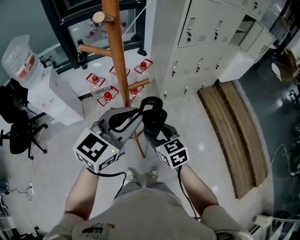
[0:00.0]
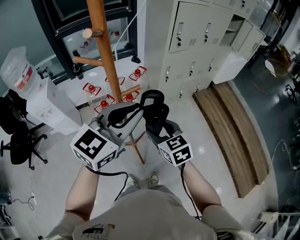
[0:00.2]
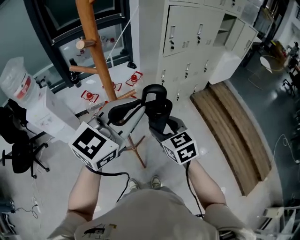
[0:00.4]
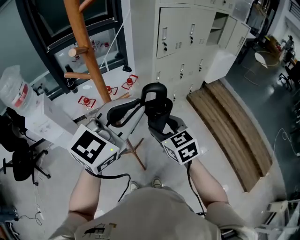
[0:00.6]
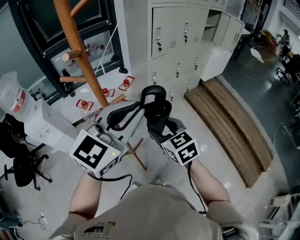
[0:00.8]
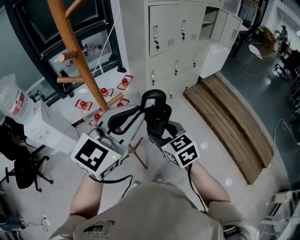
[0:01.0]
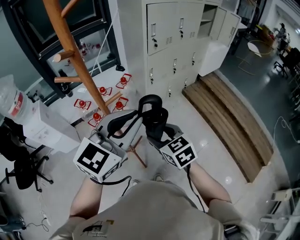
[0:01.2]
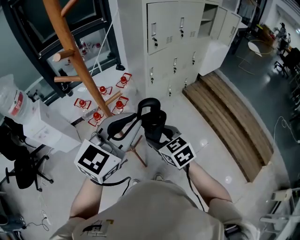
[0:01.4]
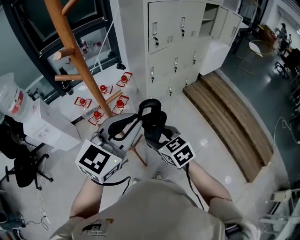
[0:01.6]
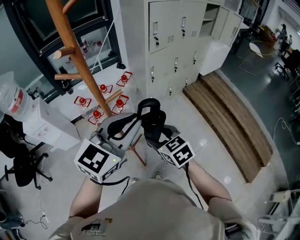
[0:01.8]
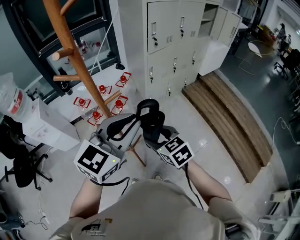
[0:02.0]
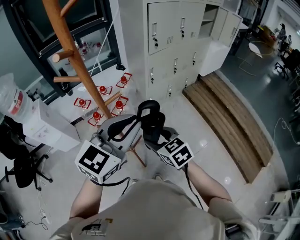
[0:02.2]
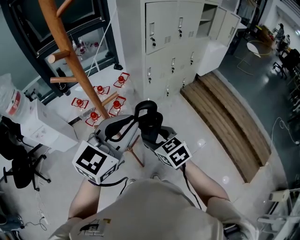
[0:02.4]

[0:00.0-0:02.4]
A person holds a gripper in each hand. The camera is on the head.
0:00.0 to 0:01.2: The two grippers go some 10 cm to the right and upward.
0:01.2 to 0:02.4: The grippers make only small movements.

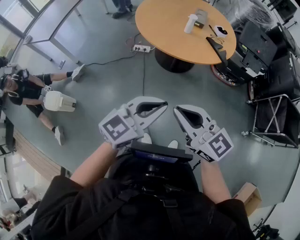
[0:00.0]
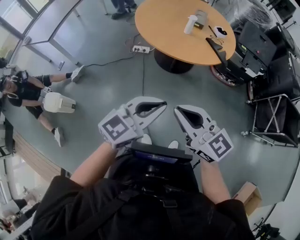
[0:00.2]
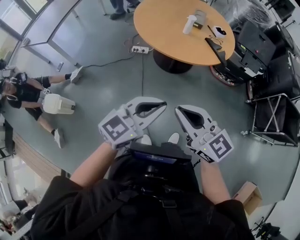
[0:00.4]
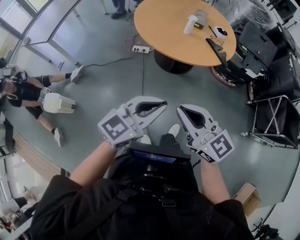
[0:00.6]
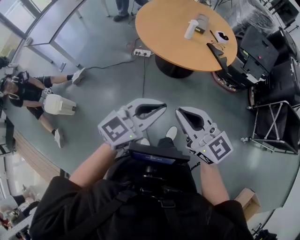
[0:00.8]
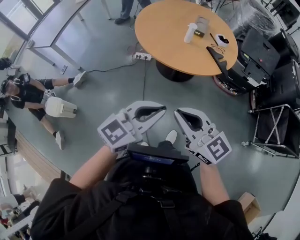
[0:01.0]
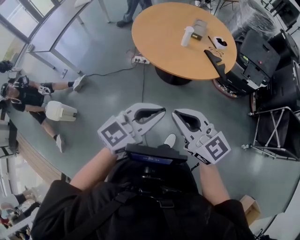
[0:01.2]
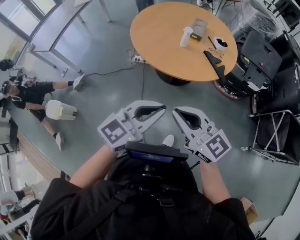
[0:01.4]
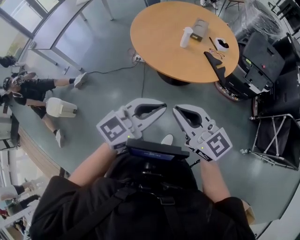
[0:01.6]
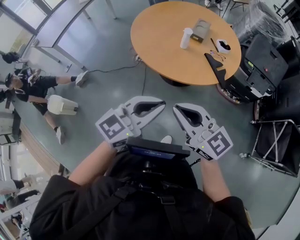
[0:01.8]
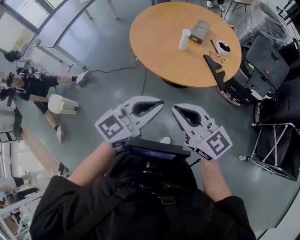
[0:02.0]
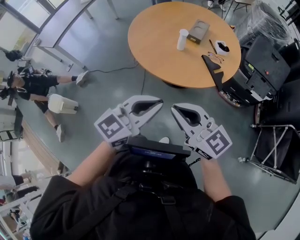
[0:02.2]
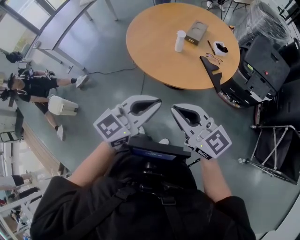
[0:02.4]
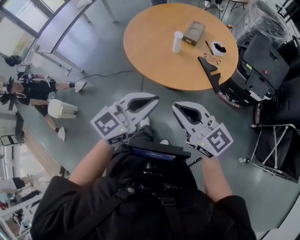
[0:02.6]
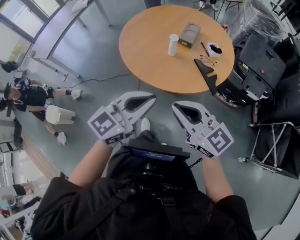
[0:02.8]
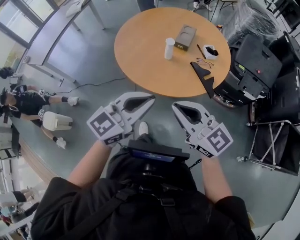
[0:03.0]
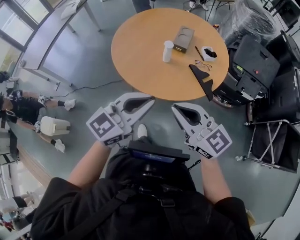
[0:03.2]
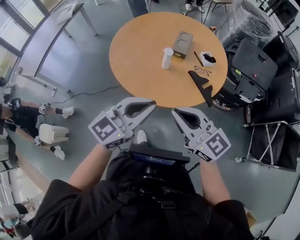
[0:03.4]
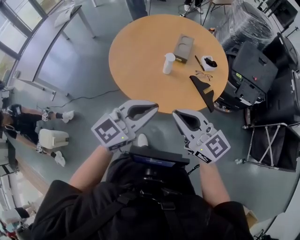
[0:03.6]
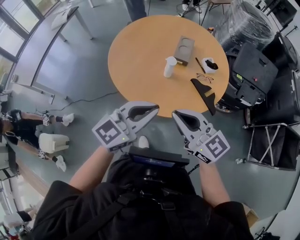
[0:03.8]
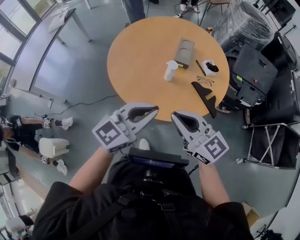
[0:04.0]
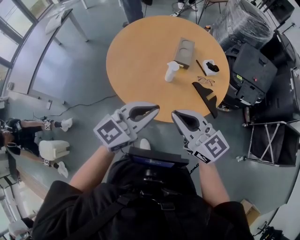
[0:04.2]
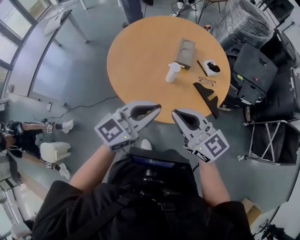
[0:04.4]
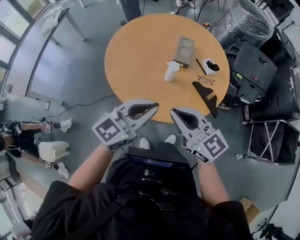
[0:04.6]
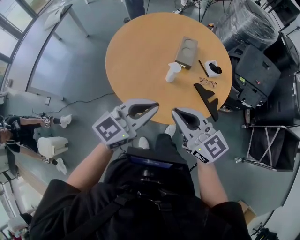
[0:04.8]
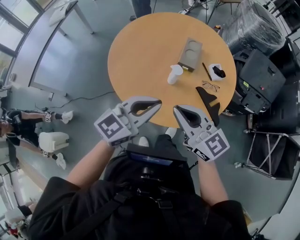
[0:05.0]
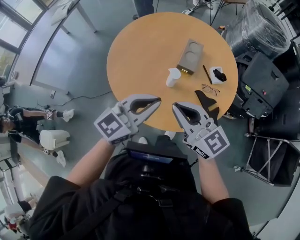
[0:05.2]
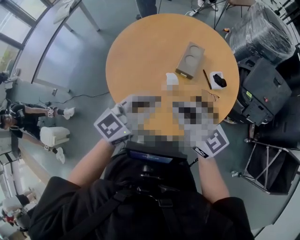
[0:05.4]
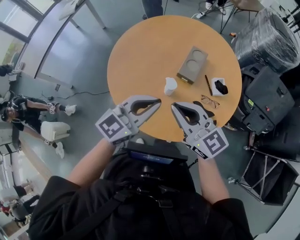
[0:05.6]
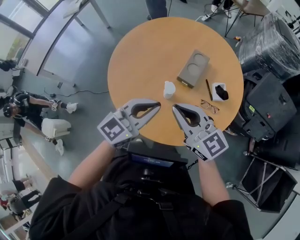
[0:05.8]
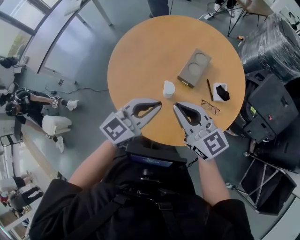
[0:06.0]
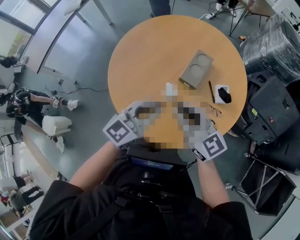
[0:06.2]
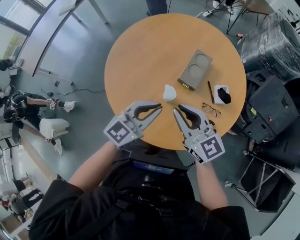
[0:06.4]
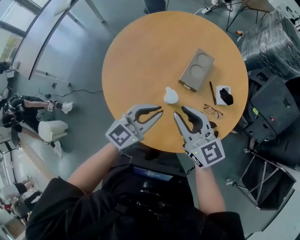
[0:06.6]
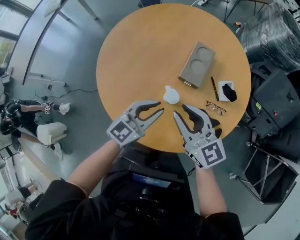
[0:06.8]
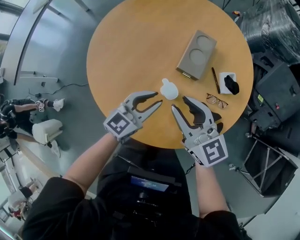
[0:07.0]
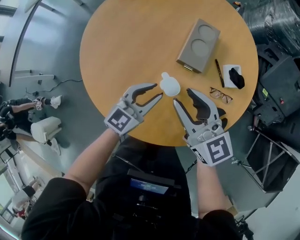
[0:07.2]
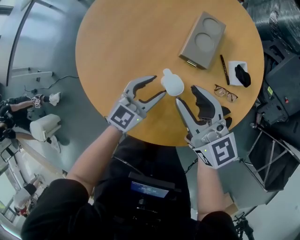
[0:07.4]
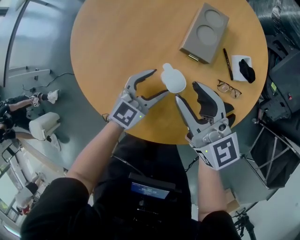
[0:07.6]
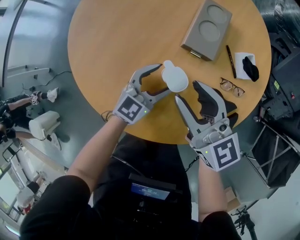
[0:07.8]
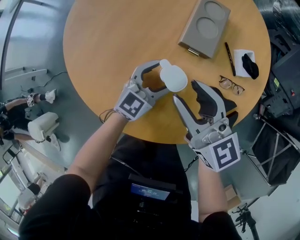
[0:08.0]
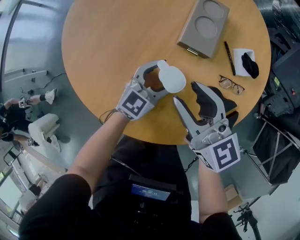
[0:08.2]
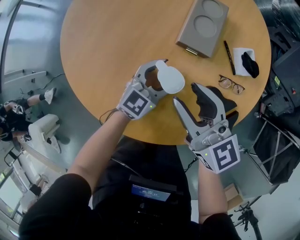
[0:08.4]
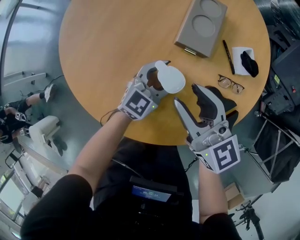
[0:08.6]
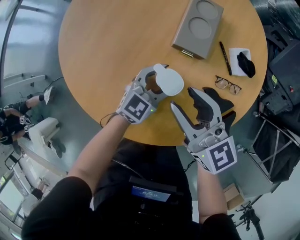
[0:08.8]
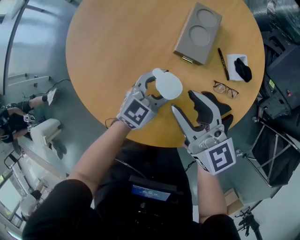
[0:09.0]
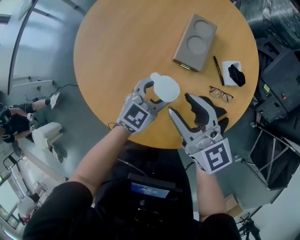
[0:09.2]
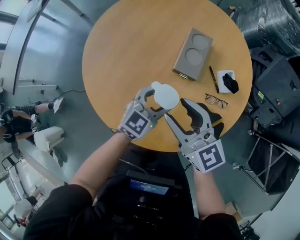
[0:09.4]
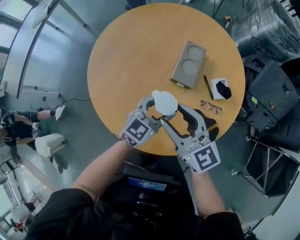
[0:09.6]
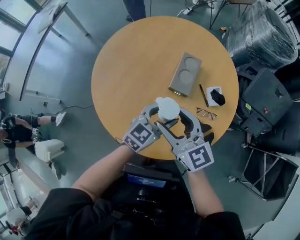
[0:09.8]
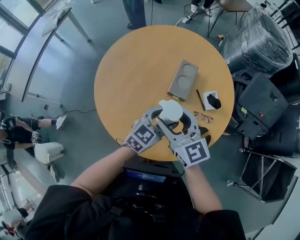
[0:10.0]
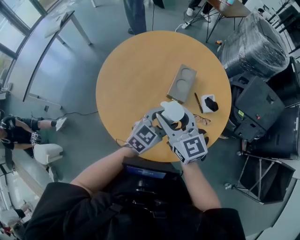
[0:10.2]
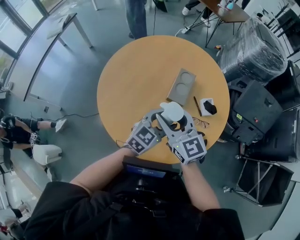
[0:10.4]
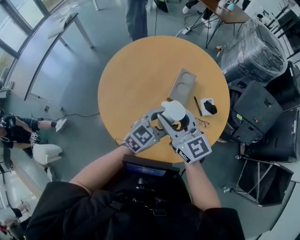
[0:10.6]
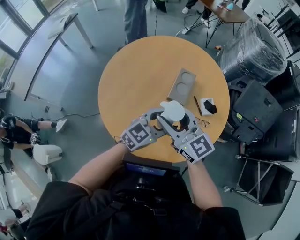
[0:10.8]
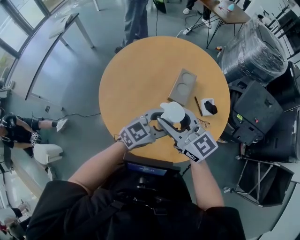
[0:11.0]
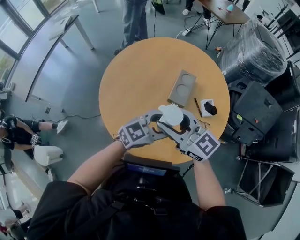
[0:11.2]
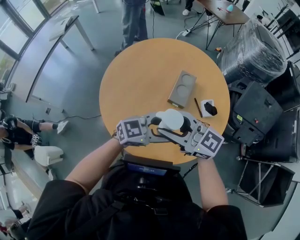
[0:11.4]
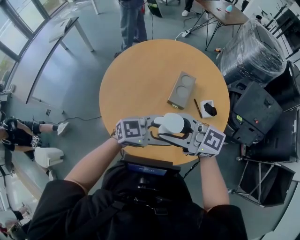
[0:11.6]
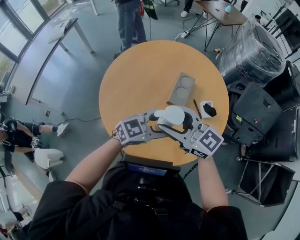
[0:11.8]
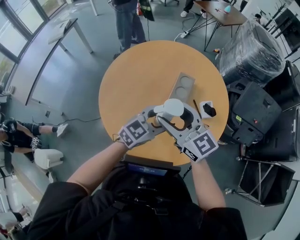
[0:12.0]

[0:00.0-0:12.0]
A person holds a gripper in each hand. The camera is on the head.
0:00.0 to 0:01.6: The two grippers go roughly 25 cm forward and to the right.
0:01.6 to 0:03.0: The grippers both shift forward and to the right by roughly 20 cm.
0:03.0 to 0:04.4: The grippers both shift forward and to the left by some 30 cm.
0:04.4 to 0:06.0: Both grippers travel together forward and to the right, some 30 cm.
0:06.0 to 0:07.6: Both grippers travel together downward and forward, about 35 cm. The right gripper opens. Meanwhile the left gripper opens.
0:07.6 to 0:09.0: The left gripper travels to the right by roughly 5 cm.
0:09.0 to 0:10.4: The two grippers go approximately 30 cm upward.
0:10.4 to 0:12.0: The right gripper shifts approximately 5 cm upward.

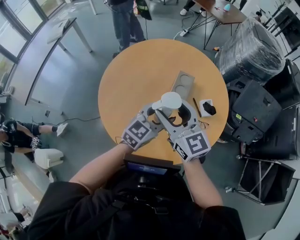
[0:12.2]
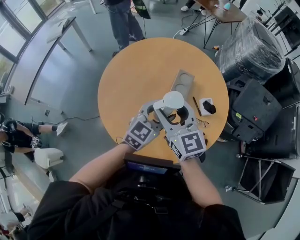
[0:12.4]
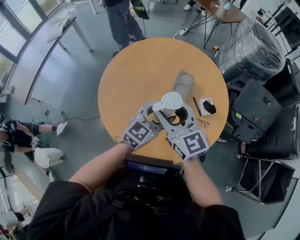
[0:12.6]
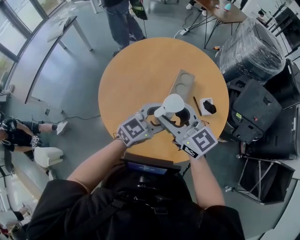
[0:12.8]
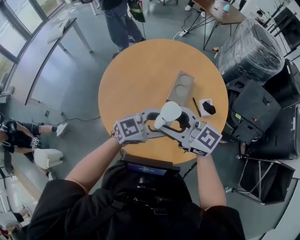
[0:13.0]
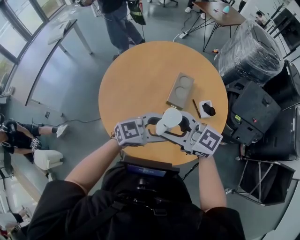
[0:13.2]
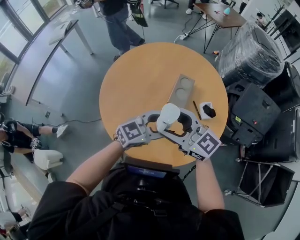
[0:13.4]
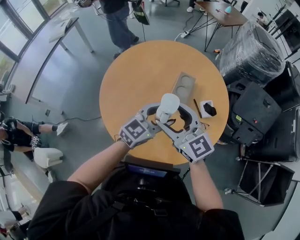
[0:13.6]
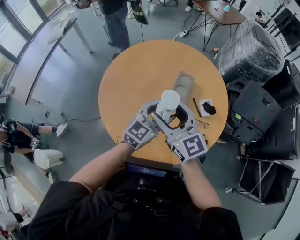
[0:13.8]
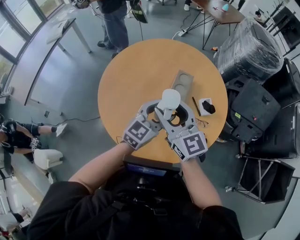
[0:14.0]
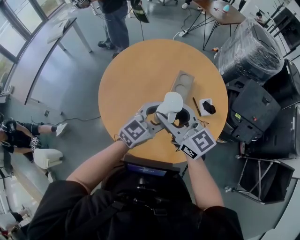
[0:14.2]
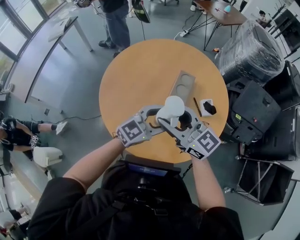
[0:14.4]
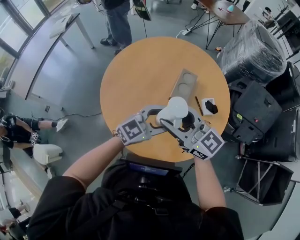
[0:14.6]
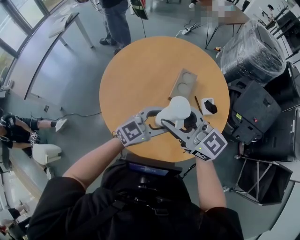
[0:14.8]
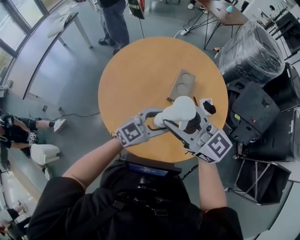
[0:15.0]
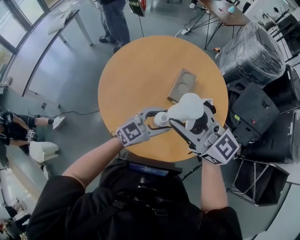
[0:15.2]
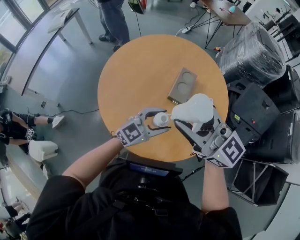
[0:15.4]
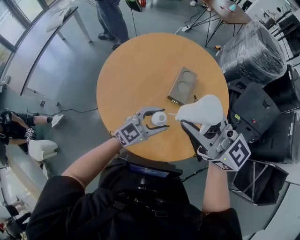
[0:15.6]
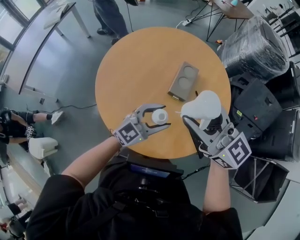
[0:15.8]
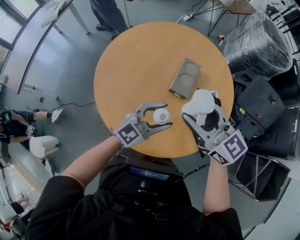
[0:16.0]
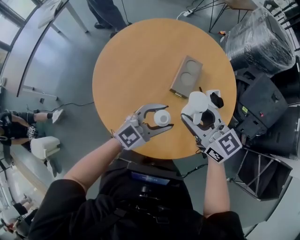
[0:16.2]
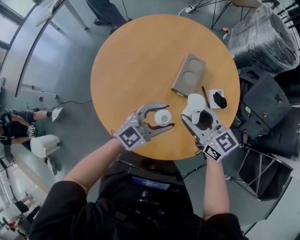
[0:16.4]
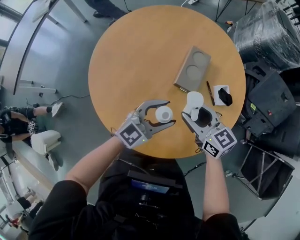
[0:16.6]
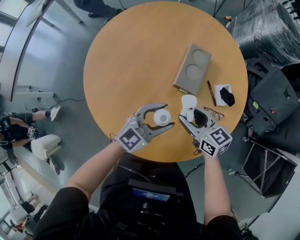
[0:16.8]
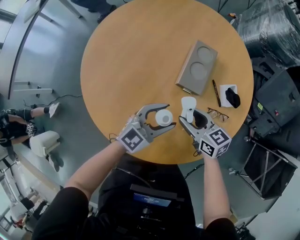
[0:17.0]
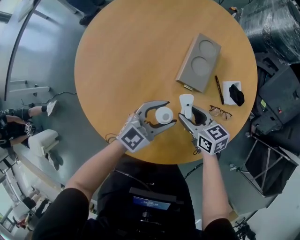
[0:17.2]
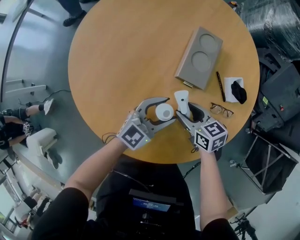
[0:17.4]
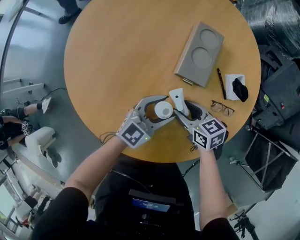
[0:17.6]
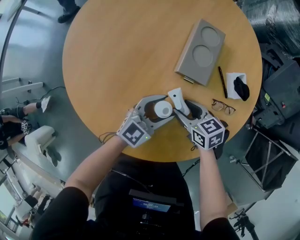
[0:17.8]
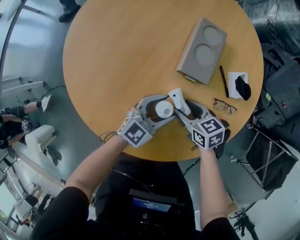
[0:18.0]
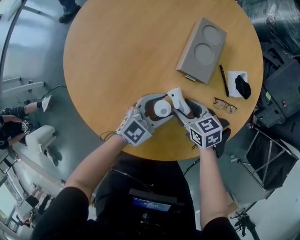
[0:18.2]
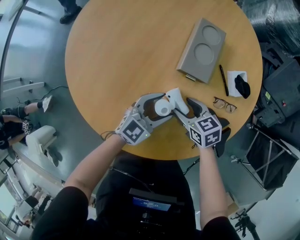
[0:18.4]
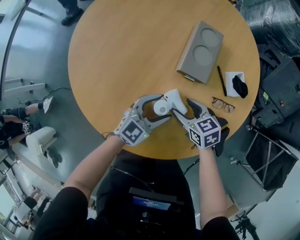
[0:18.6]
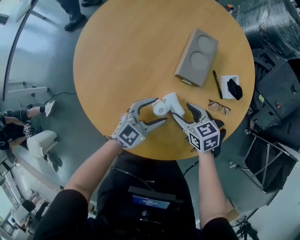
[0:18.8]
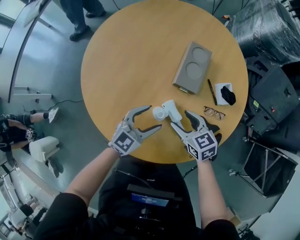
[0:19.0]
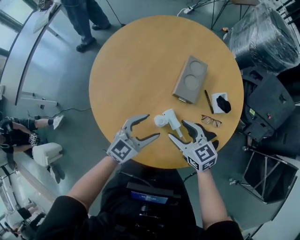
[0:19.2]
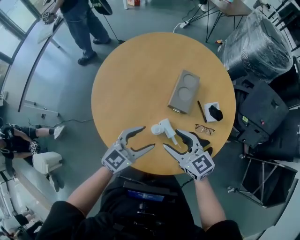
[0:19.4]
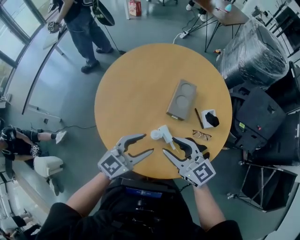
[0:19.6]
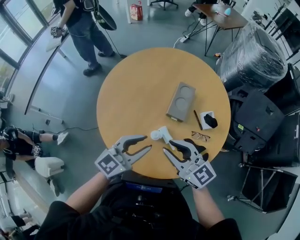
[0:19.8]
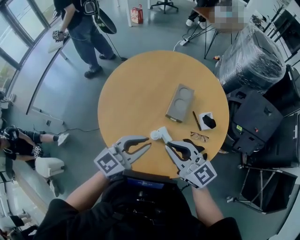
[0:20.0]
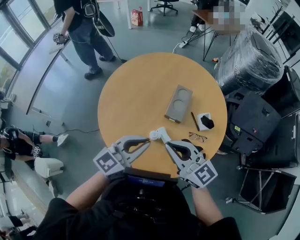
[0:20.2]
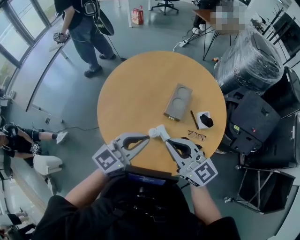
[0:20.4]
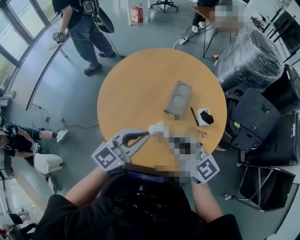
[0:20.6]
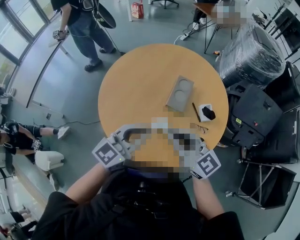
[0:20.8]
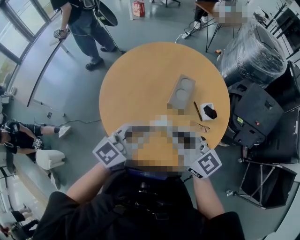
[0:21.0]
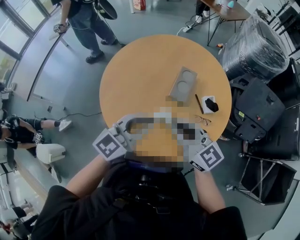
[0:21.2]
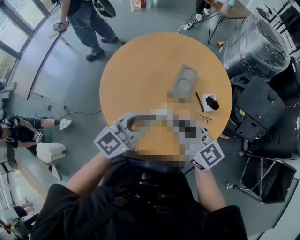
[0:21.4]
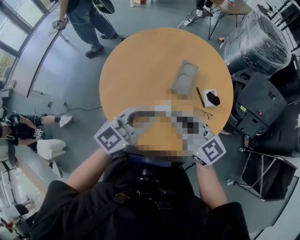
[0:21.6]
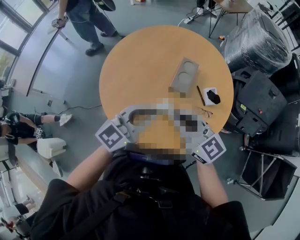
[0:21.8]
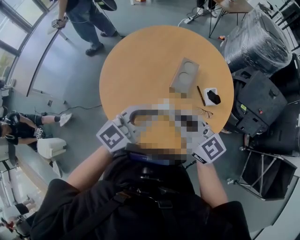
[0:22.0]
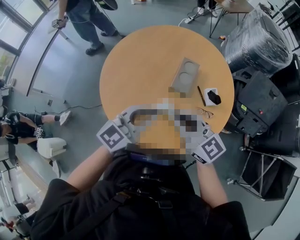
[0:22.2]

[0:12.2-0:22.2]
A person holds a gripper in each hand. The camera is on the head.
0:13.6 to 0:15.0: The left gripper shifts by approximately 5 cm, while the right gripper travels upward by approximately 5 cm.
0:15.0 to 0:16.4: The right gripper heads downward and forward, covering approximately 25 cm, and turns by approximately 30 degrees; the left gripper is displaced downward and forward by about 15 cm.
0:16.4 to 0:18.0: Both grippers travel together downward, approximately 35 cm. The right gripper rotates approximately 30 degrees.
0:18.0 to 0:19.4: Both grippers travel together upward, some 30 cm. The right gripper swivels roughly 30 degrees.
0:19.4 to 0:20.8: The two grippers go about 20 cm upward. The right gripper closes its fingers; the left gripper closes.
0:20.8 to 0:22.2: The grippers stay close to where they were, moving slightly.
